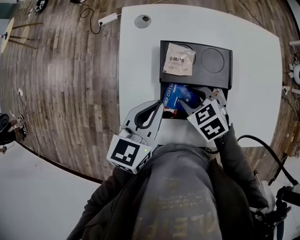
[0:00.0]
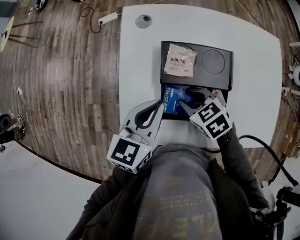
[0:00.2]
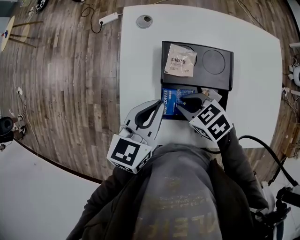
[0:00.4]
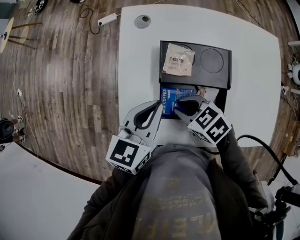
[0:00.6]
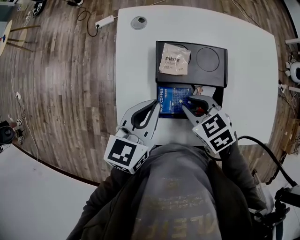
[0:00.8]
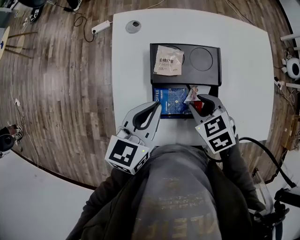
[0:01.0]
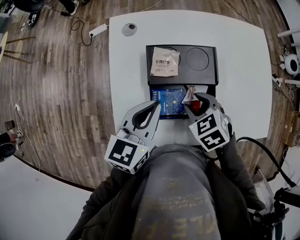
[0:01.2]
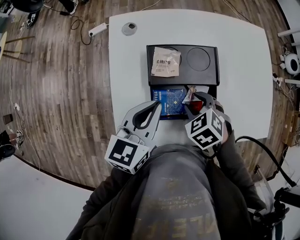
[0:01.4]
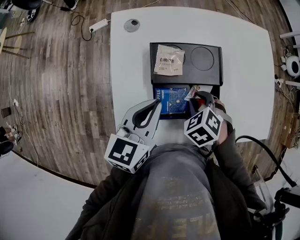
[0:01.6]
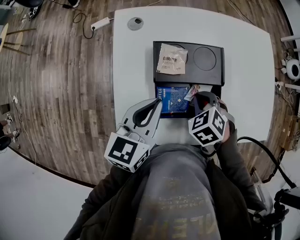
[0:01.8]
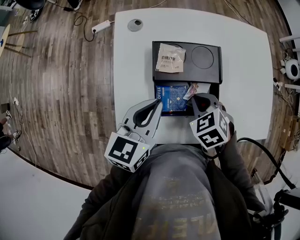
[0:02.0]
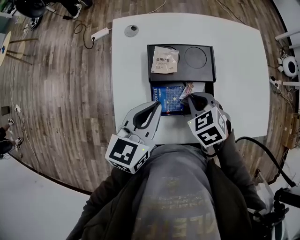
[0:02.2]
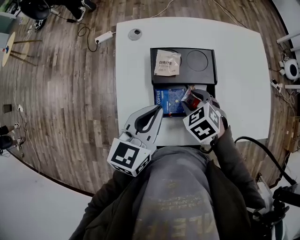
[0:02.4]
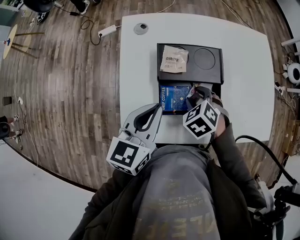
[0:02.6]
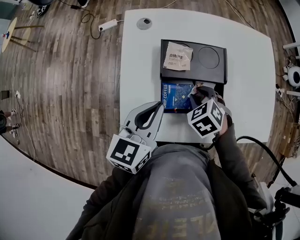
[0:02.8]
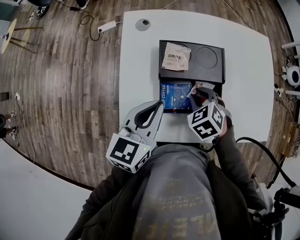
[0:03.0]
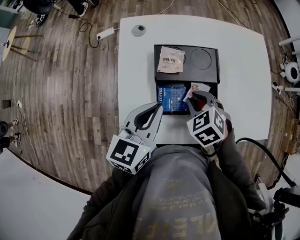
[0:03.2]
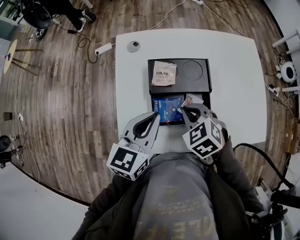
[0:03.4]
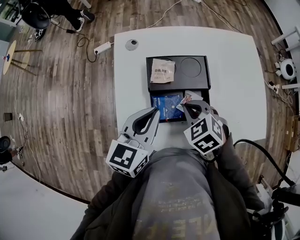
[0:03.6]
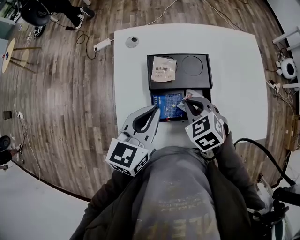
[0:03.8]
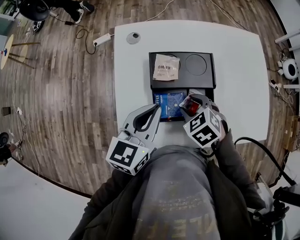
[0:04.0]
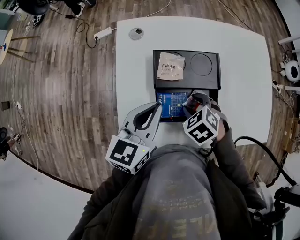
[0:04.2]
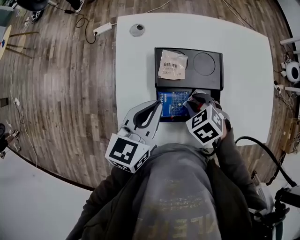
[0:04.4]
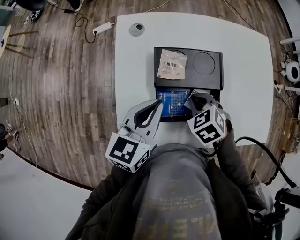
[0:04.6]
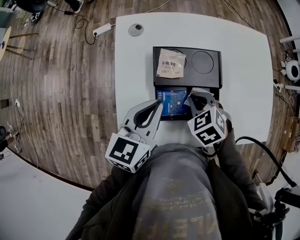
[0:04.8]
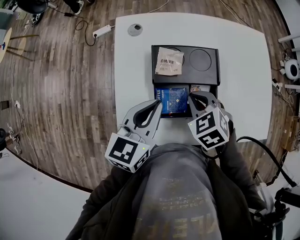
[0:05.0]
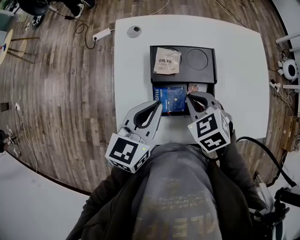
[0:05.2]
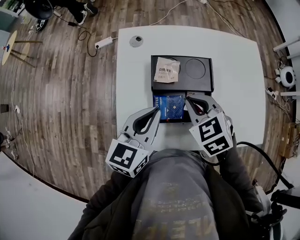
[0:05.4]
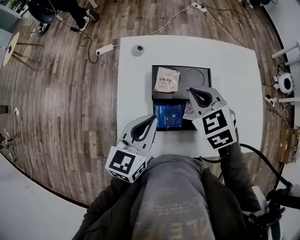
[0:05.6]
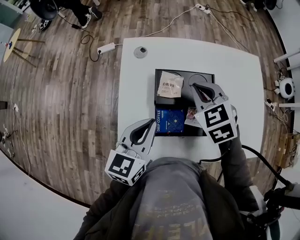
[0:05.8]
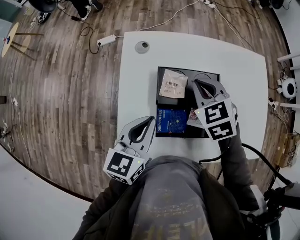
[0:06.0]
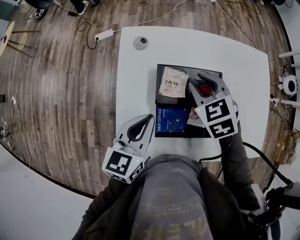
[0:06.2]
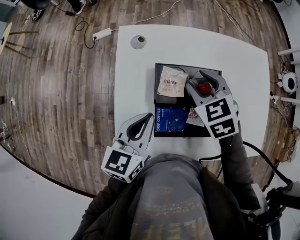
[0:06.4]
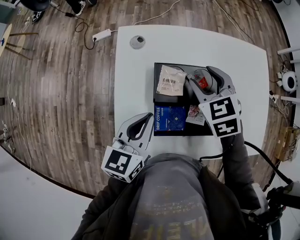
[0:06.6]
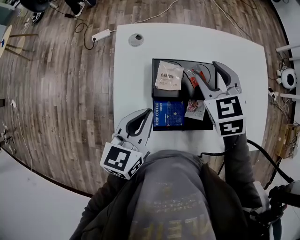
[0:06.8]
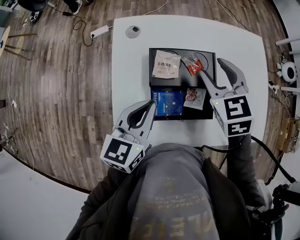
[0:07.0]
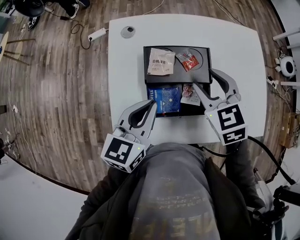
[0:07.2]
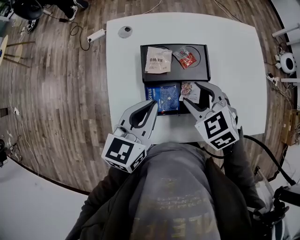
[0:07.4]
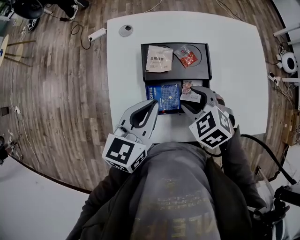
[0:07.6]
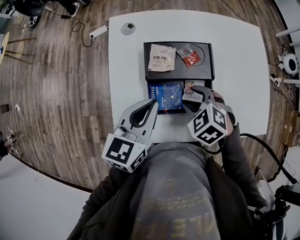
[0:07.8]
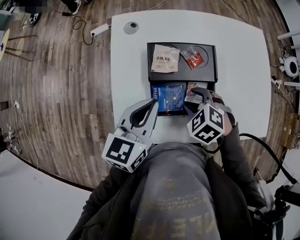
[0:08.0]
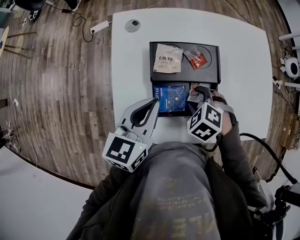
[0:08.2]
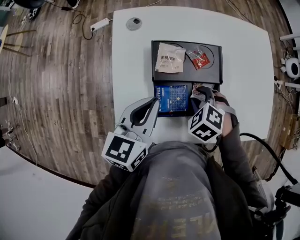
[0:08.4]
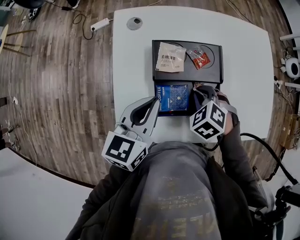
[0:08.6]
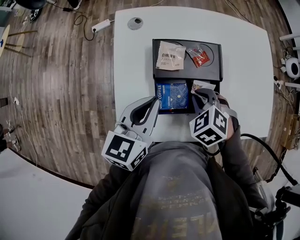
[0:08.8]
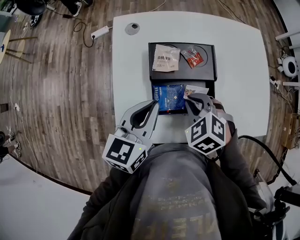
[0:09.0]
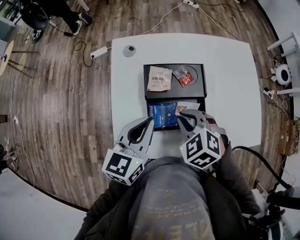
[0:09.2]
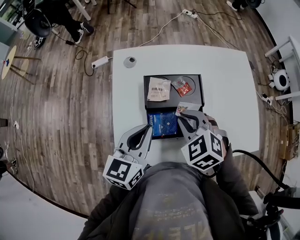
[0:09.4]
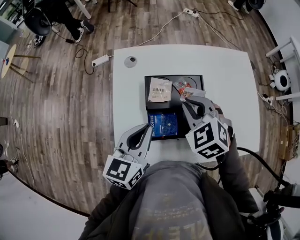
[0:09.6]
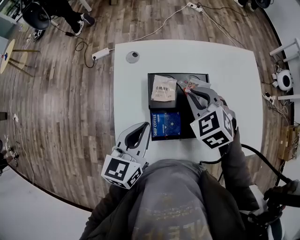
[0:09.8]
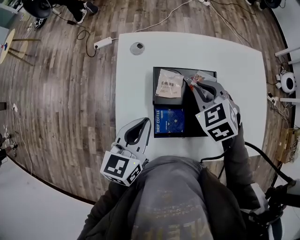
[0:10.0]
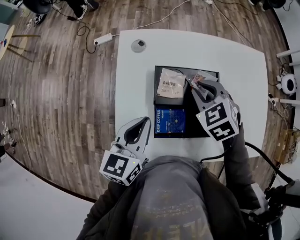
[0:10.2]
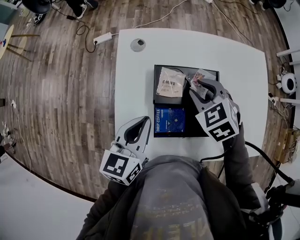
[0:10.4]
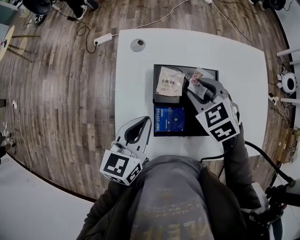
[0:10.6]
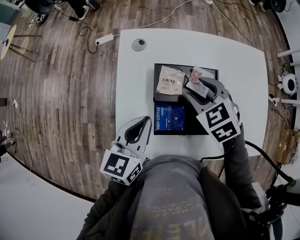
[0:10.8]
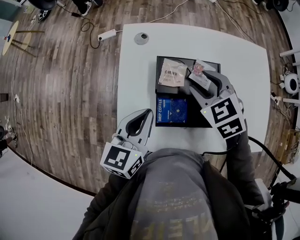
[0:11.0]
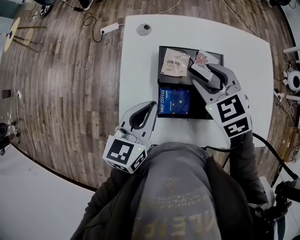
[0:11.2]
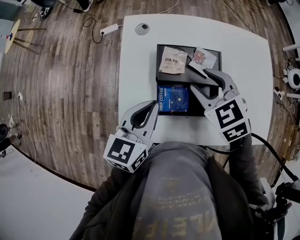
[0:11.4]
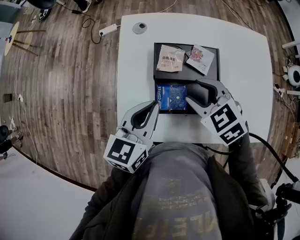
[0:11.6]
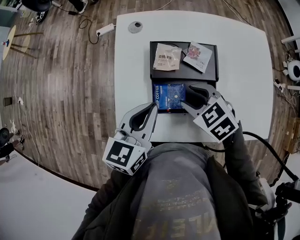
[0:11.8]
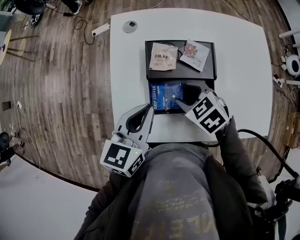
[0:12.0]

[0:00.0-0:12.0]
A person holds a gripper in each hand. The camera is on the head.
0:00.0 to 0:01.6: The right gripper shifts by roughly 5 cm, and turns by roughly 30 degrees.
0:01.6 to 0:03.0: The grippers make only small movements.
0:03.0 to 0:04.4: The right gripper closes and opens again.
0:04.4 to 0:06.0: The right gripper goes approximately 15 cm forward and upward, changes its angle by about 20 degrees, and closes.
0:06.0 to 0:07.6: The right gripper heads backward and downward, covering some 15 cm, and opens up; the left gripper ends up about 5 cm from where it was.
0:07.6 to 0:09.0: The right gripper closes up.
0:09.0 to 0:10.4: The right gripper heads forward, covering about 15 cm, and opens its fingers.
0:10.4 to 0:12.0: The left gripper ends up some 5 cm from where it was. Meanwhile the right gripper shifts approximately 15 cm backward and downward.

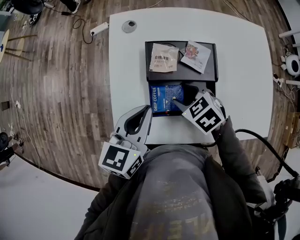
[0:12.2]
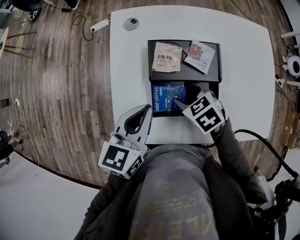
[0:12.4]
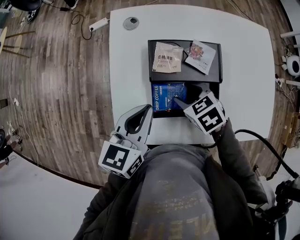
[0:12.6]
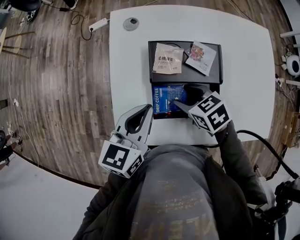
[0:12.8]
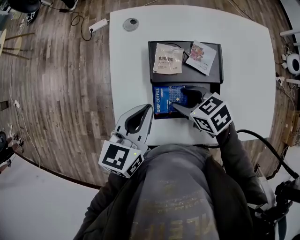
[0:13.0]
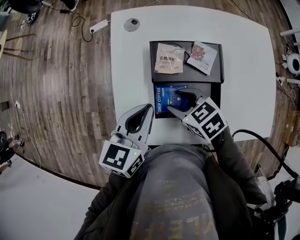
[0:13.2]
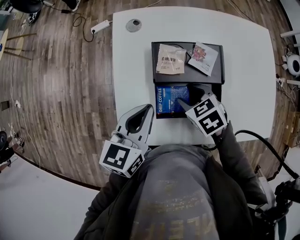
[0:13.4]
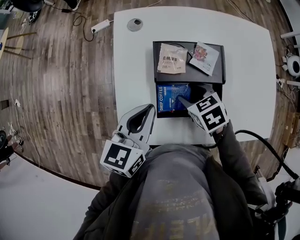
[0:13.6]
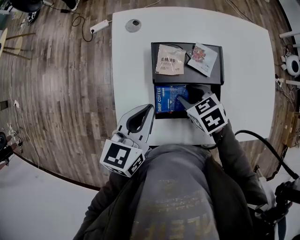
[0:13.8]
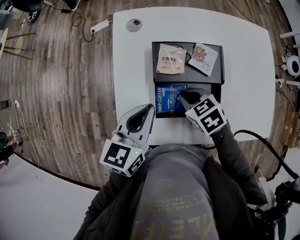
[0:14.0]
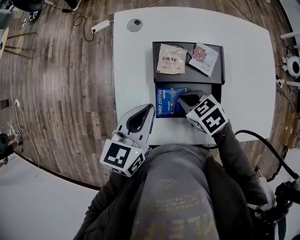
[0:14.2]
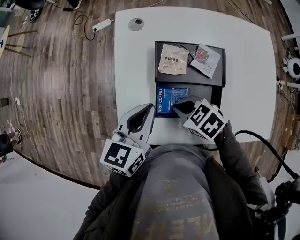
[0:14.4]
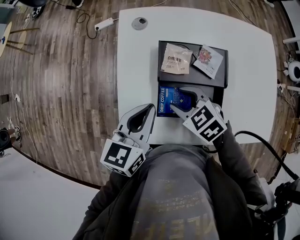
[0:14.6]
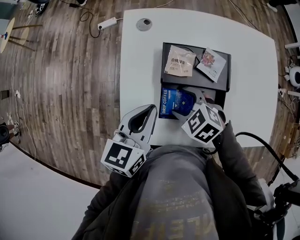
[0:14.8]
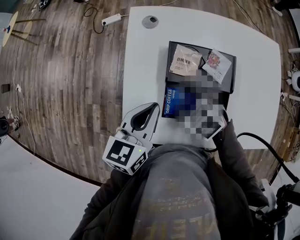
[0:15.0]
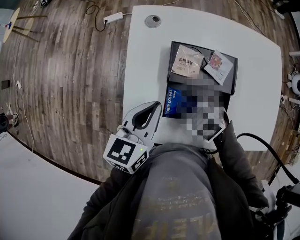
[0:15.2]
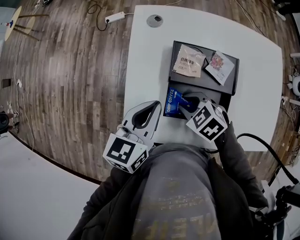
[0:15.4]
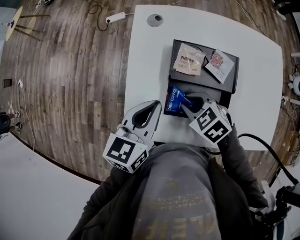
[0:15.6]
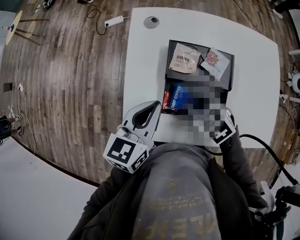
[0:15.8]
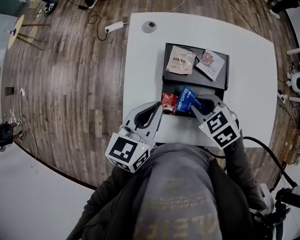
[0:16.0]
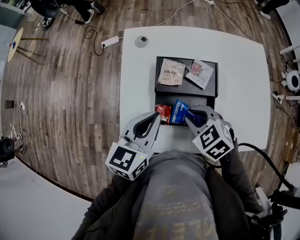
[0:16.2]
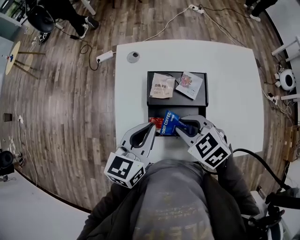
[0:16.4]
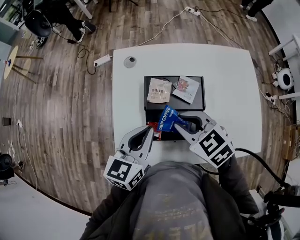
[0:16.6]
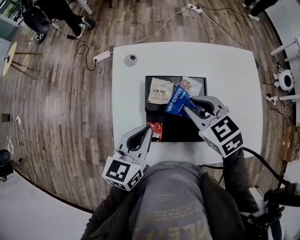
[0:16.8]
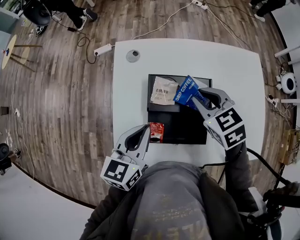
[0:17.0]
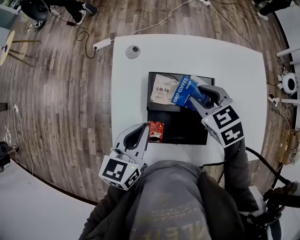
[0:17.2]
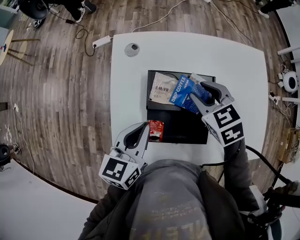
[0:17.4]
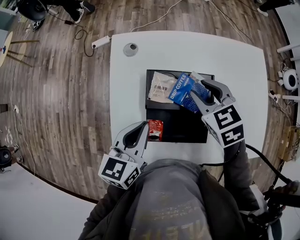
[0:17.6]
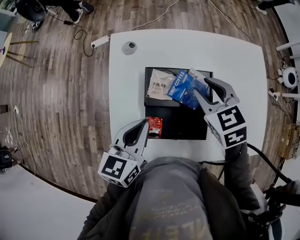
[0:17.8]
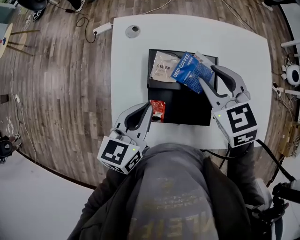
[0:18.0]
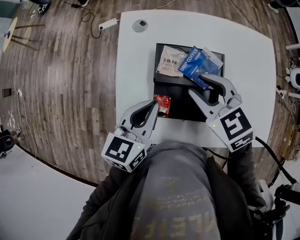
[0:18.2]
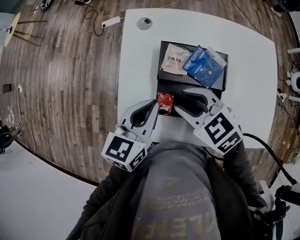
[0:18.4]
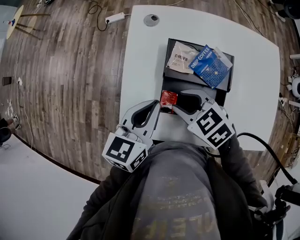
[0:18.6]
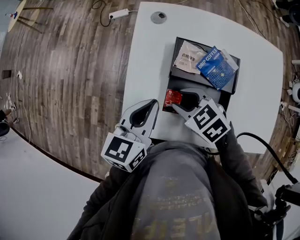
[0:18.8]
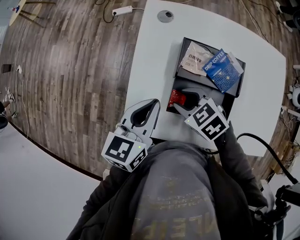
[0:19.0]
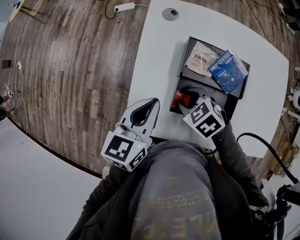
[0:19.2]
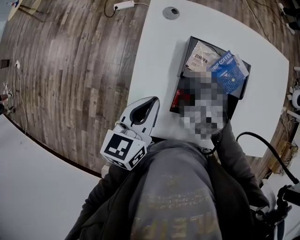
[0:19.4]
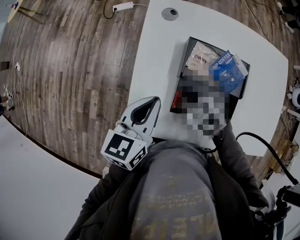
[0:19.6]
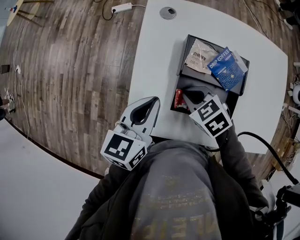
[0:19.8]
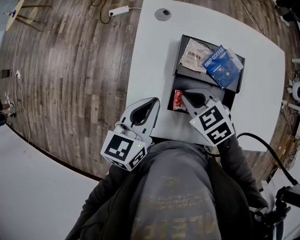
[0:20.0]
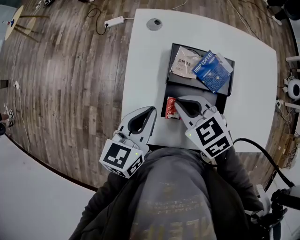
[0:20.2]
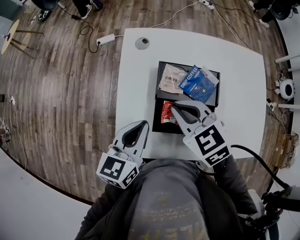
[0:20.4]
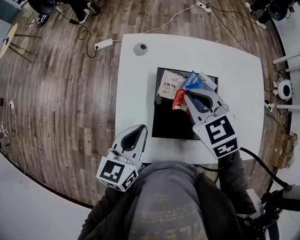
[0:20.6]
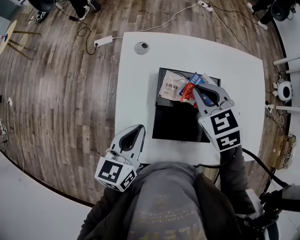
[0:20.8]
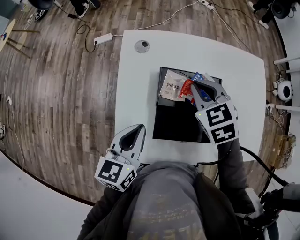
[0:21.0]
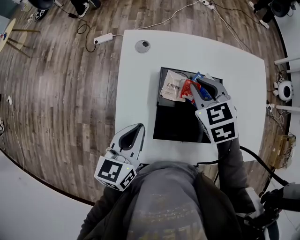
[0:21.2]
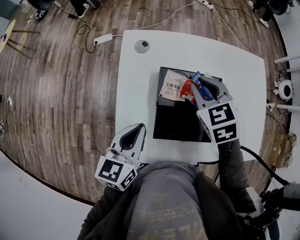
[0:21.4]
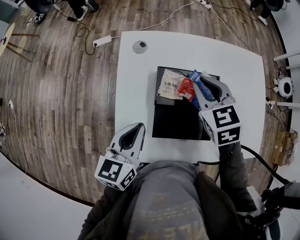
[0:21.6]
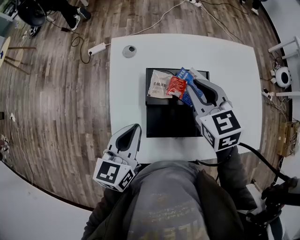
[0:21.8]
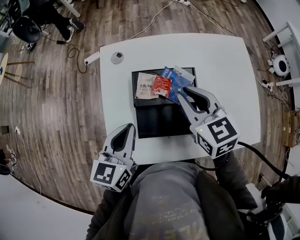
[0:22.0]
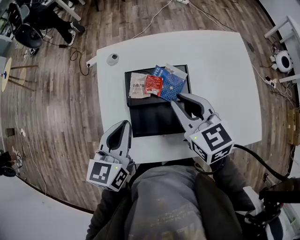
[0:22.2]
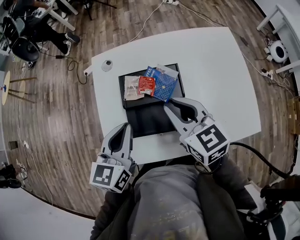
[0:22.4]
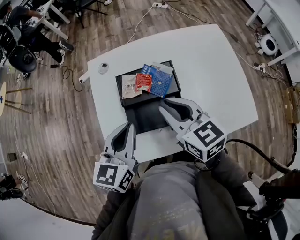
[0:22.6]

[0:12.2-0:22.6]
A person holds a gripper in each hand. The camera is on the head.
0:12.2 to 0:13.6: The grippers move only a little.
0:13.6 to 0:15.2: The right gripper heads to the left, covering roughly 5 cm, rotates some 30 degrees, and closes, then opens again.
0:15.2 to 0:16.6: The left gripper is displaced to the right by some 5 cm; the right gripper heads upward and to the right, covering roughly 15 cm, and changes its angle by approximately 20 degrees.
0:18.2 to 0:19.6: The left gripper moves to the left, about 5 cm. Meanwhile the right gripper travels downward and to the left by roughly 20 cm, changes its angle by approximately 30 degrees, and closes up.
0:19.6 to 0:21.2: The right gripper moves some 20 cm, and swivels some 30 degrees.
0:21.2 to 0:22.6: The left gripper goes approximately 10 cm to the right and upward; the right gripper is displaced backward and upward by approximately 15 cm, and rotates roughly 40 degrees.

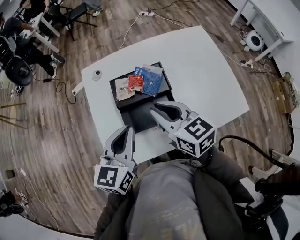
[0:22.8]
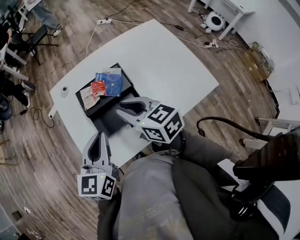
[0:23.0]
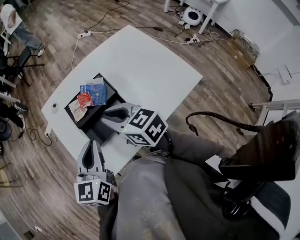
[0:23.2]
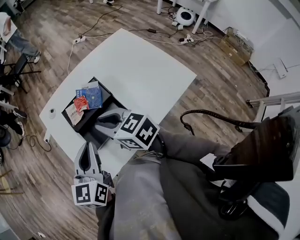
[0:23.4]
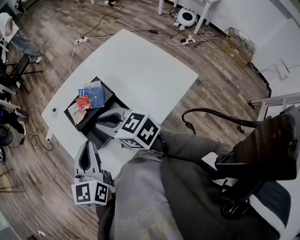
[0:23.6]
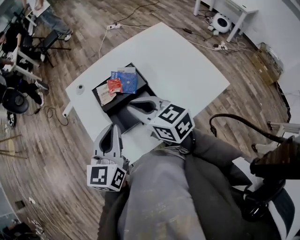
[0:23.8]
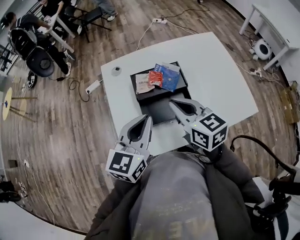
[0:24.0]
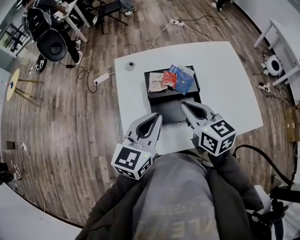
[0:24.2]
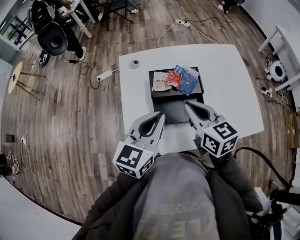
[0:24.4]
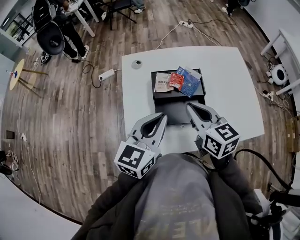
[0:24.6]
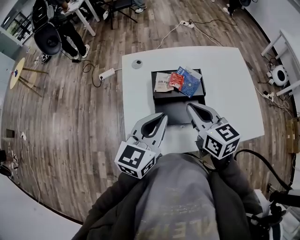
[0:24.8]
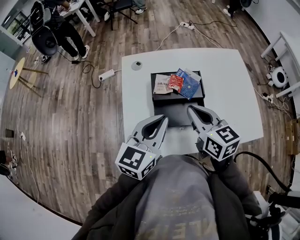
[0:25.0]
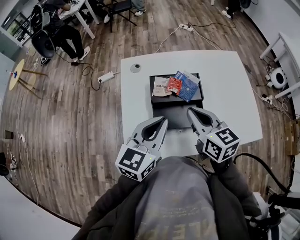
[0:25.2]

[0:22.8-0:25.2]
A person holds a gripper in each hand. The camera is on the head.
0:22.8 to 0:25.2: The grippers make only small movements.
